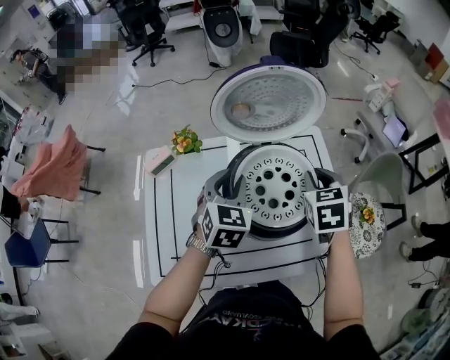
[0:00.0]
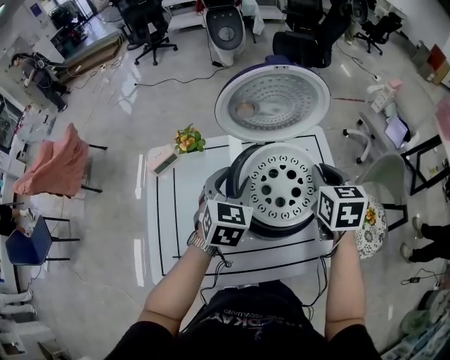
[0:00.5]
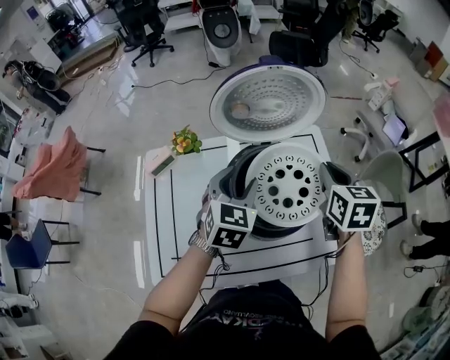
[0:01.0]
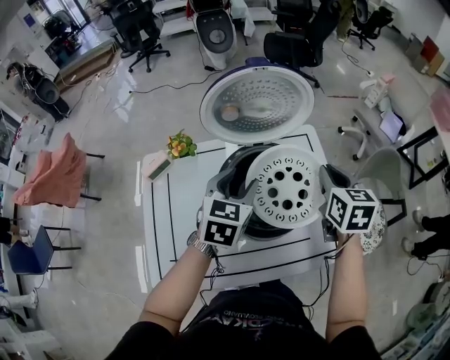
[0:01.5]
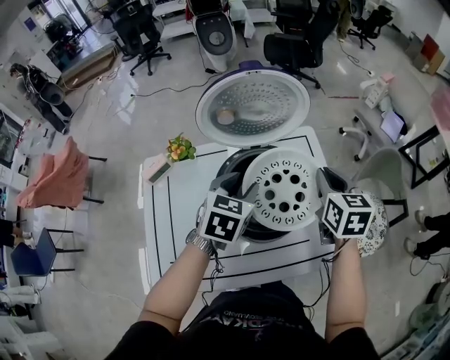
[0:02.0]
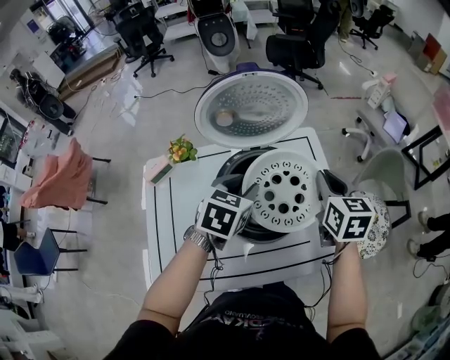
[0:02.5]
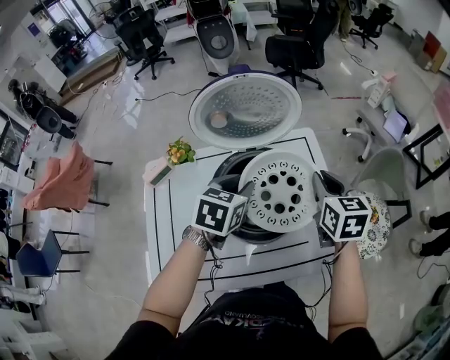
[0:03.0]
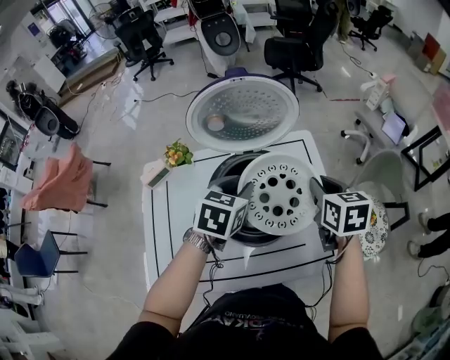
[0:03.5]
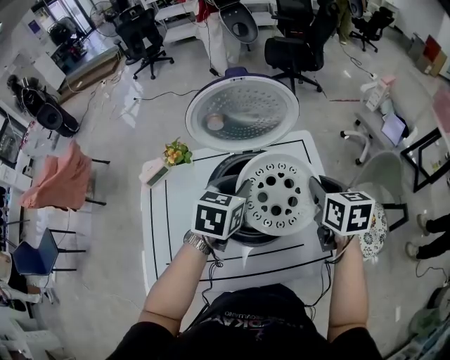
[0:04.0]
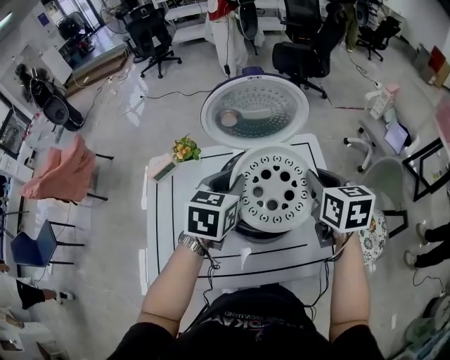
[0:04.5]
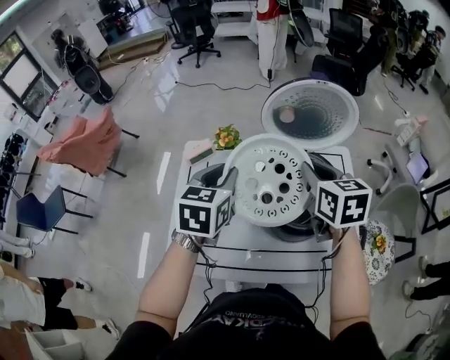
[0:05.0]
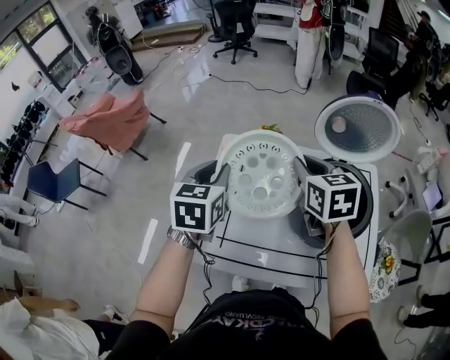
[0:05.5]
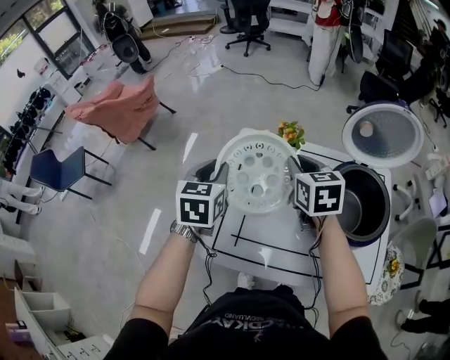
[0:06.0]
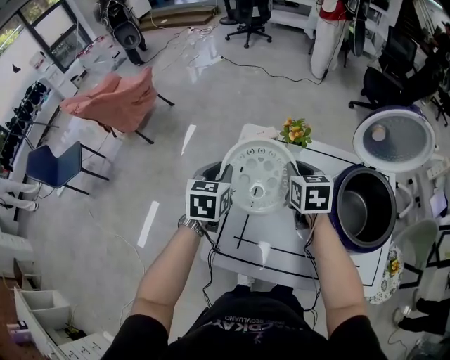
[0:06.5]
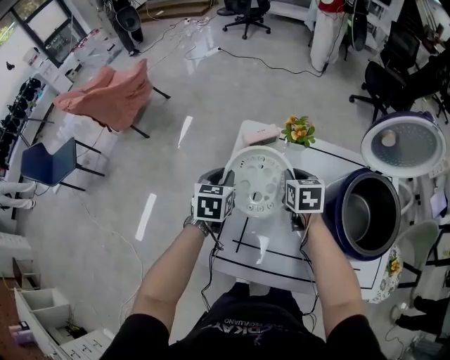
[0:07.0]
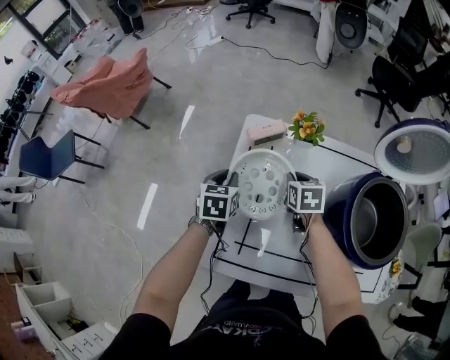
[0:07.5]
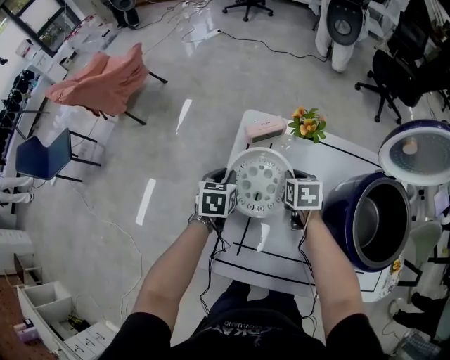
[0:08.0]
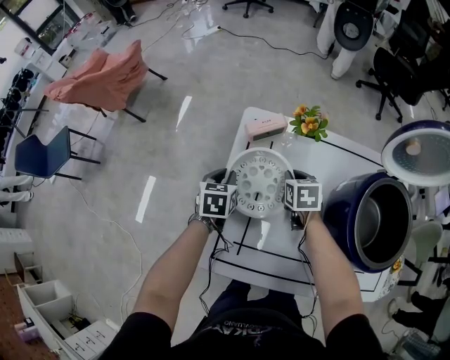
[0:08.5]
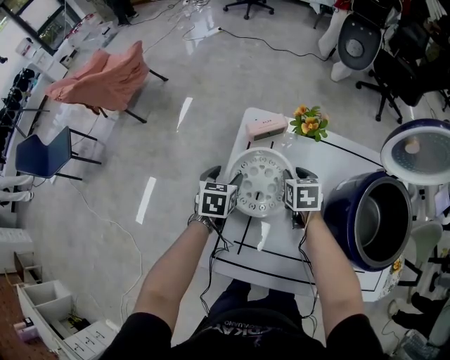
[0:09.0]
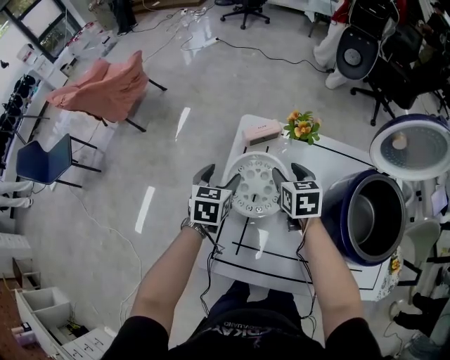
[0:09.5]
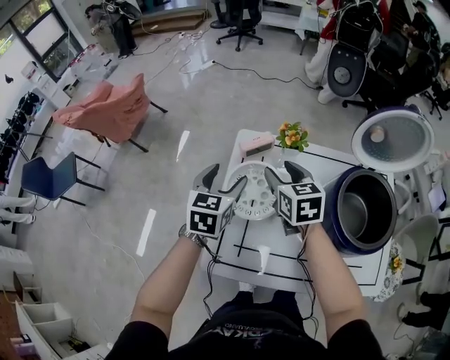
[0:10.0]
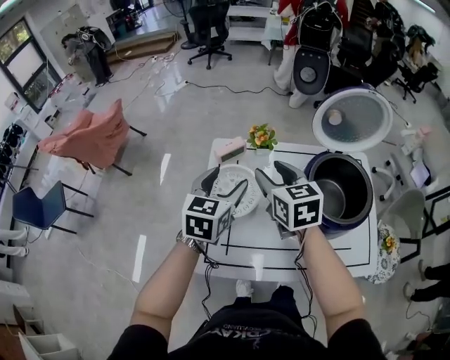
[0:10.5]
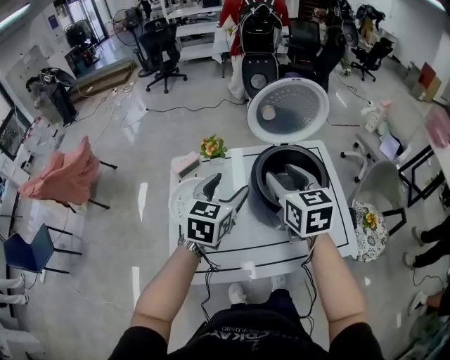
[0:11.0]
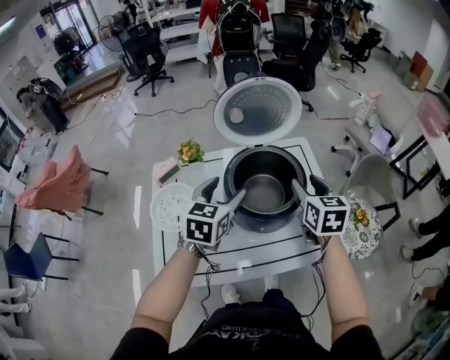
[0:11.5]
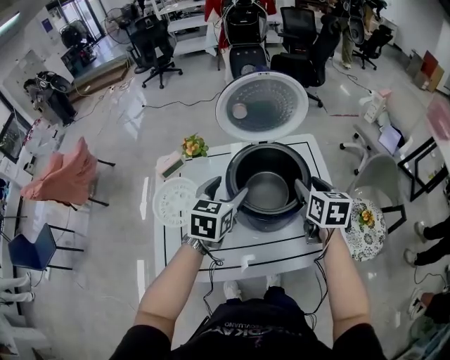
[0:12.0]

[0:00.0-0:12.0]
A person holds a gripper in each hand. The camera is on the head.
0.0 to 2.0 s: The right gripper shifts by some 5 cm, and rotates roughly 20 degrees.
2.0 to 4.0 s: The grippers move only a little.
4.0 to 6.0 s: The pair of grippers is taken about 40 cm. The left gripper rotates approximately 40 degrees. Meanwhile the right gripper rotates about 30 degrees.
6.0 to 8.0 s: The grippers both shift downward by roughly 25 cm. The right gripper rotates about 20 degrees.
8.0 to 10.0 s: Both grippers travel together upward, roughly 20 cm. The right gripper swivels approximately 20 degrees, and opens its fingers, while the left gripper changes its angle by approximately 20 degrees, and opens up.
10.0 to 12.0 s: The left gripper ends up roughly 35 cm from where it was, and changes its angle by about 20 degrees. Meanwhile the right gripper moves about 10 cm upward and comes back, and turns by about 30 degrees.

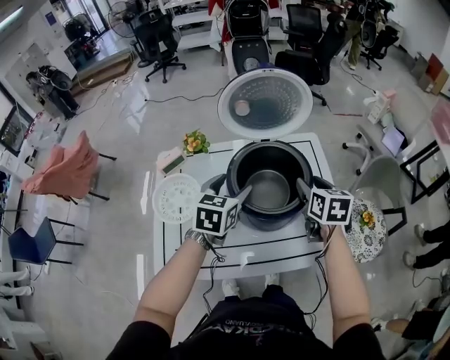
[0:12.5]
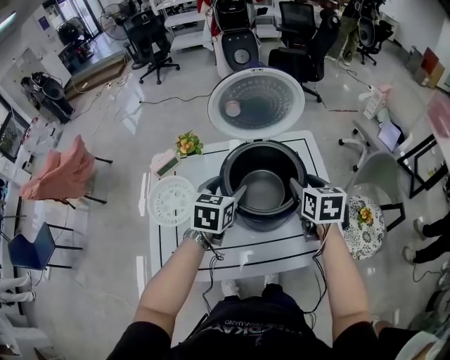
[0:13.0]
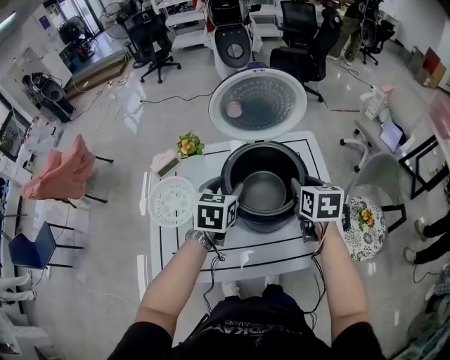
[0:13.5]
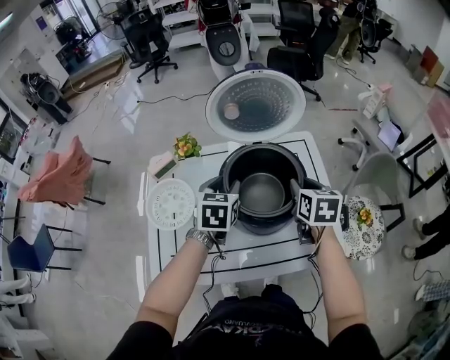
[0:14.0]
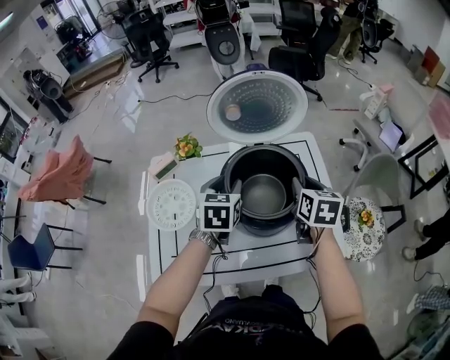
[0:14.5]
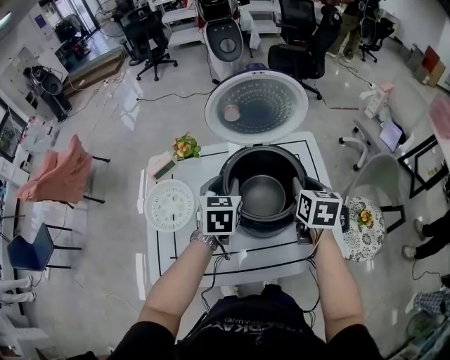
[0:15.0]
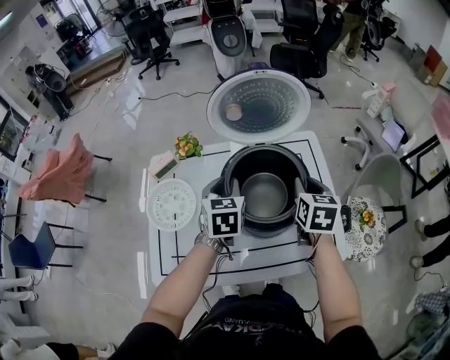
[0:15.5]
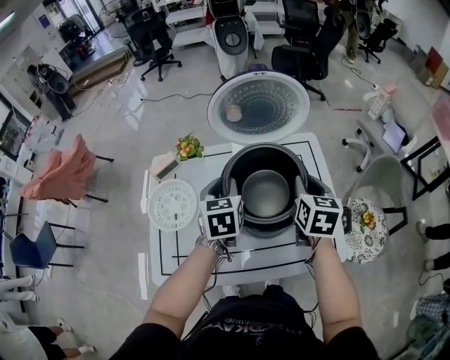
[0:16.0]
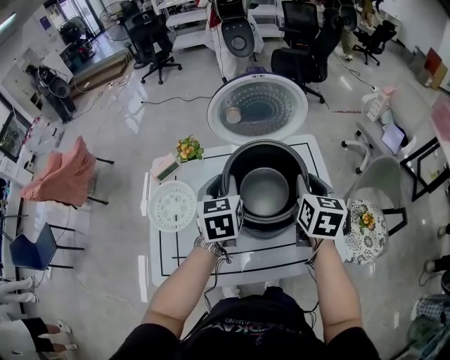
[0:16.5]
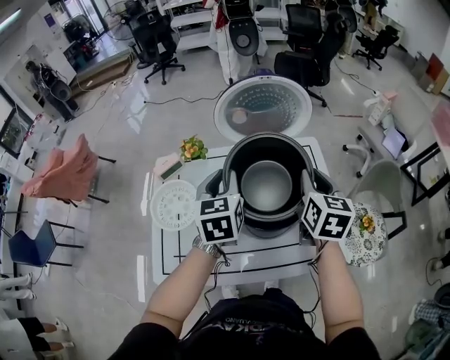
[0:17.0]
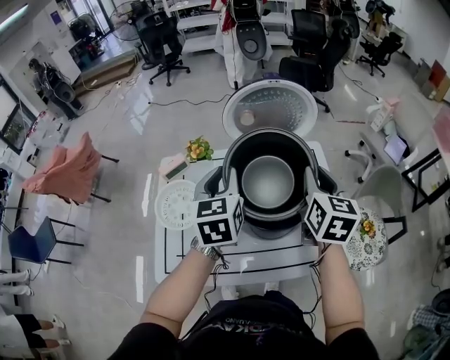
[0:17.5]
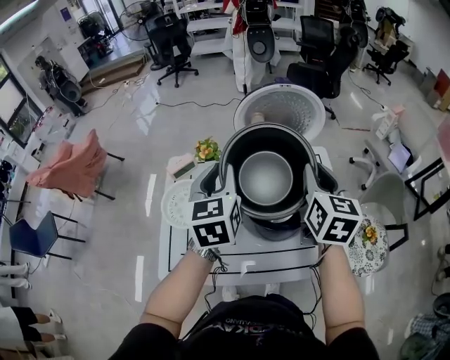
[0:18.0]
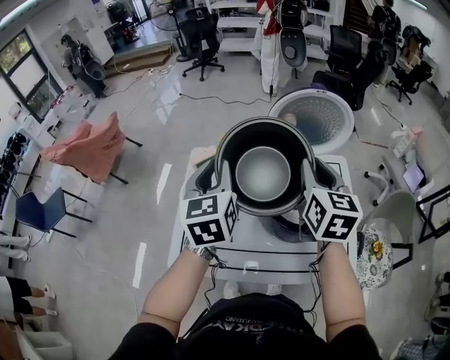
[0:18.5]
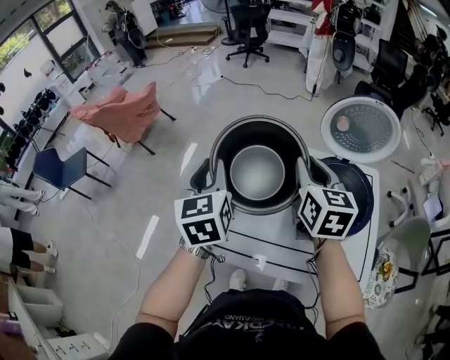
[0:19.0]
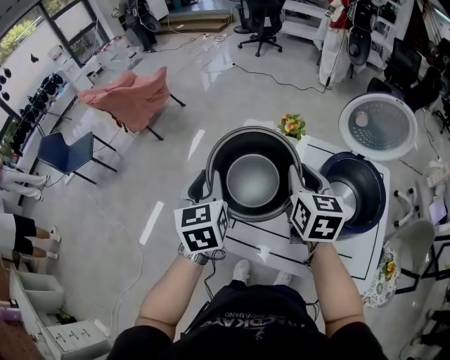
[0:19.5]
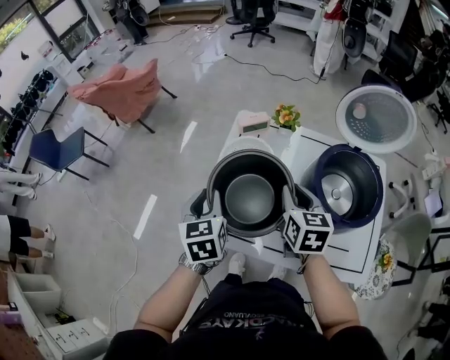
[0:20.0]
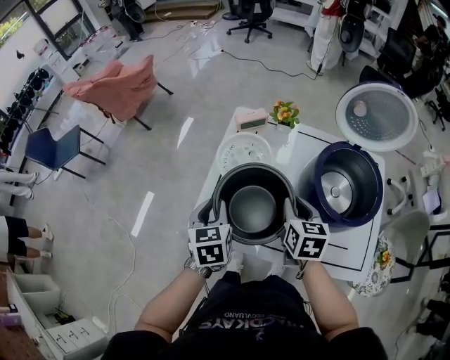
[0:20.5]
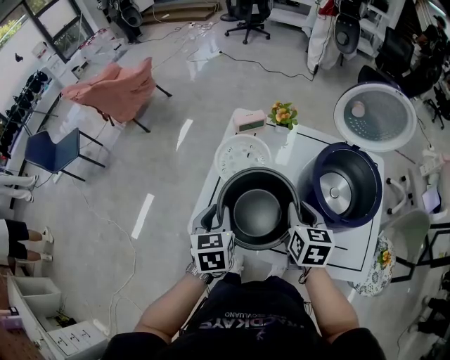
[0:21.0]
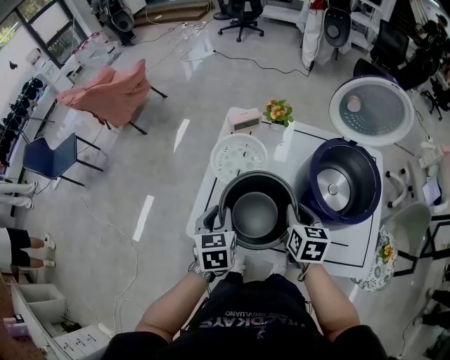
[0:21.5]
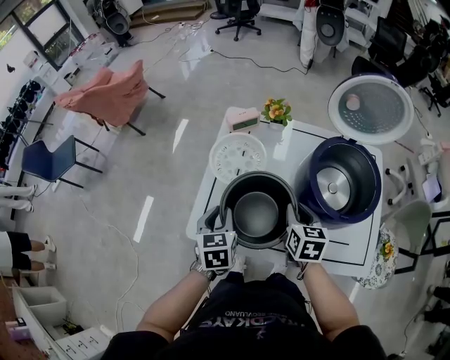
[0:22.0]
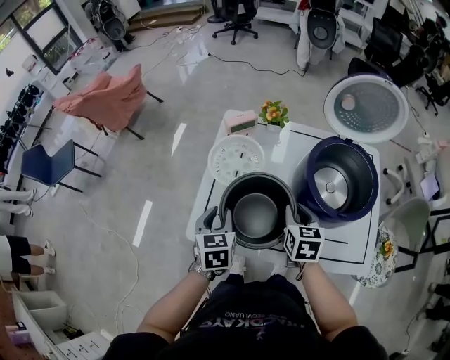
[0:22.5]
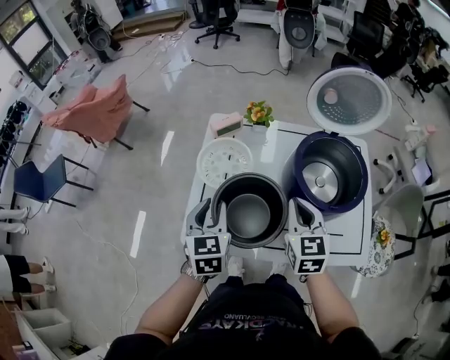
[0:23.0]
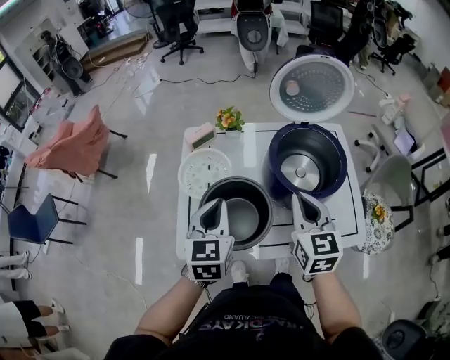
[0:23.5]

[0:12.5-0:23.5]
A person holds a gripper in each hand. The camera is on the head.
12.5 to 14.5 s: The left gripper closes its fingers. Meanwhile the right gripper closes its fingers.
14.5 to 16.0 s: The grippers move only a little.
16.0 to 18.0 s: The grippers both shift upward by approximately 15 cm.
18.0 to 20.0 s: The right gripper shifts by roughly 30 cm, and changes its angle by about 30 degrees, while the left gripper changes place by approximately 35 cm, and changes its angle by some 30 degrees.
20.0 to 21.5 s: The two grippers go roughly 10 cm downward.
21.5 to 23.5 s: The right gripper is displaced upward by some 15 cm, and rotates roughly 20 degrees, while the left gripper shifts about 15 cm upward and to the right, and swivels some 30 degrees.

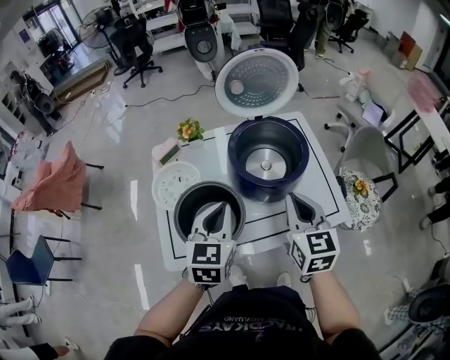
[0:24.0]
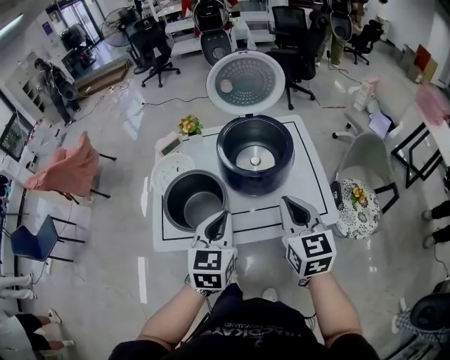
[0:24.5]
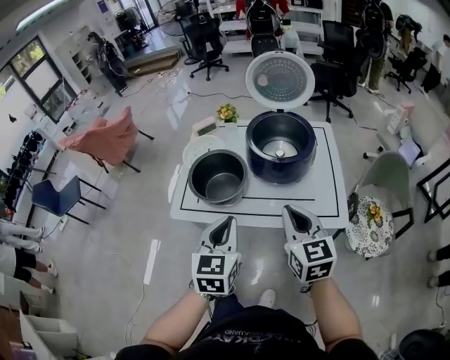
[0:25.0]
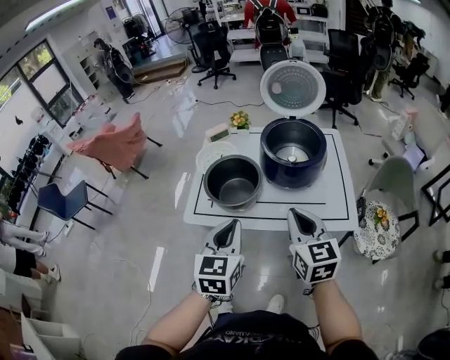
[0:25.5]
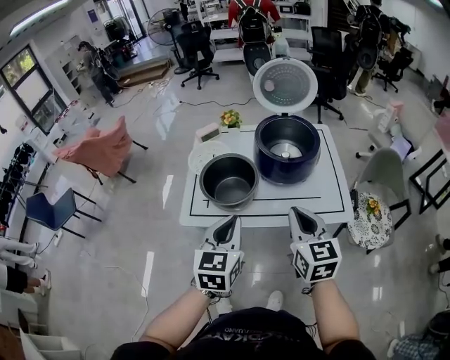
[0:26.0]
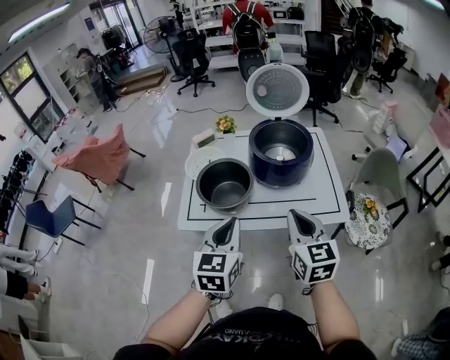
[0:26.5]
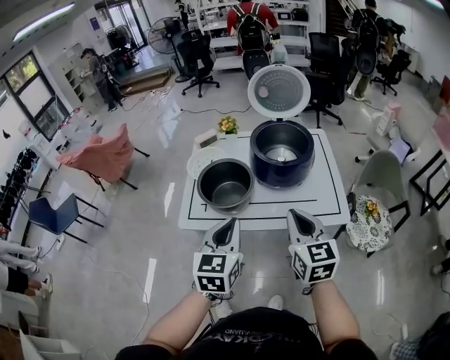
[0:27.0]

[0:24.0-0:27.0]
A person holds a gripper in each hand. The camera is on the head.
24.0 to 25.5 s: Both grippers move backward, roughly 20 cm. The right gripper turns by about 20 degrees.
25.5 to 27.0 s: There are only small adjustments of the grippers.

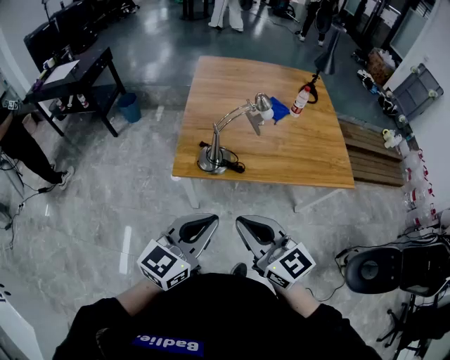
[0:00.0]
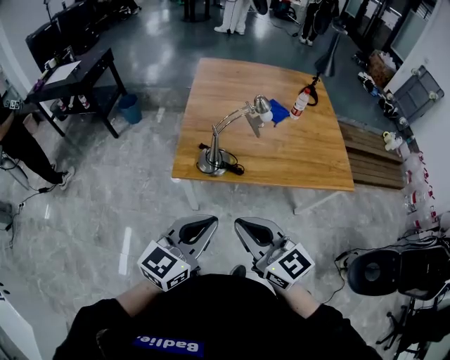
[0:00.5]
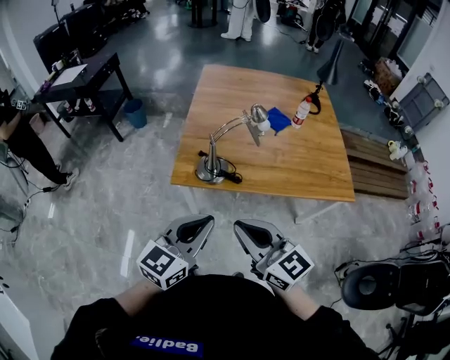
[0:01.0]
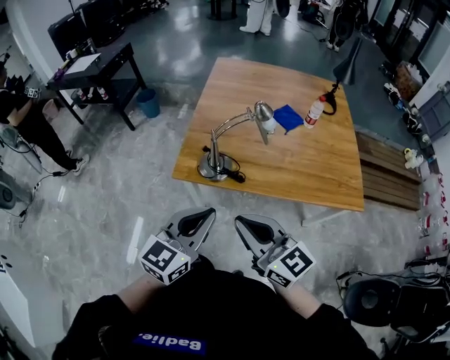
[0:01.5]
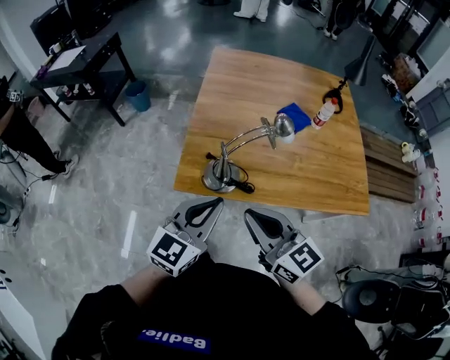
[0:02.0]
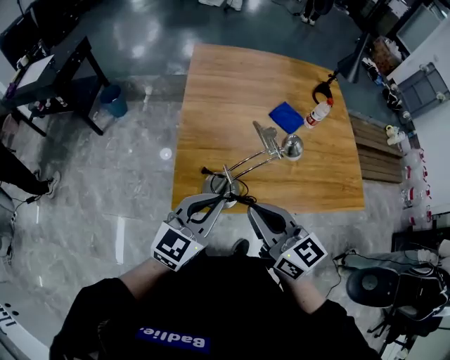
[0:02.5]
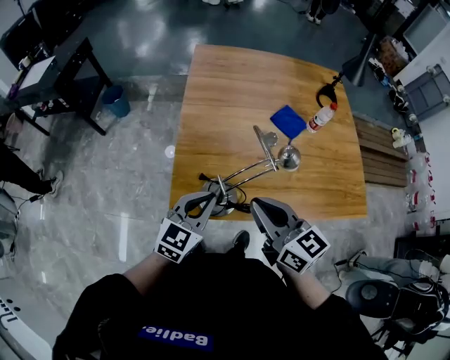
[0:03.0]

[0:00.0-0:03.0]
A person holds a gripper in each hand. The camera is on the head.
0.0 to 1.5 s: The right gripper heads to the right, covering approximately 5 cm; the left gripper travels forward and to the right by about 10 cm.
1.5 to 3.0 s: The right gripper is displaced forward by some 25 cm; the left gripper moves forward and downward, about 30 cm.
